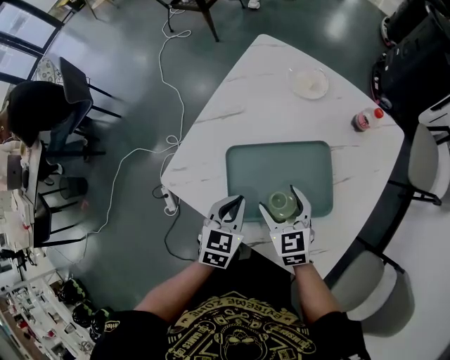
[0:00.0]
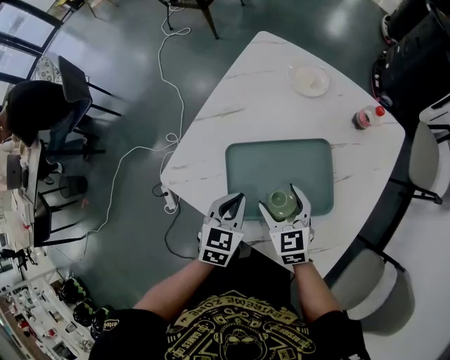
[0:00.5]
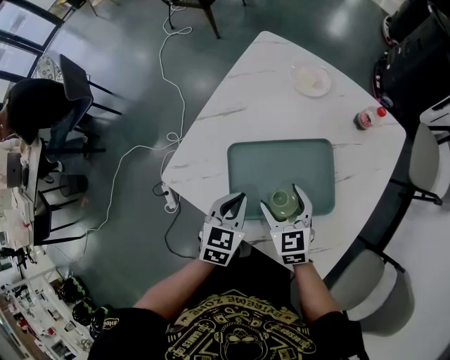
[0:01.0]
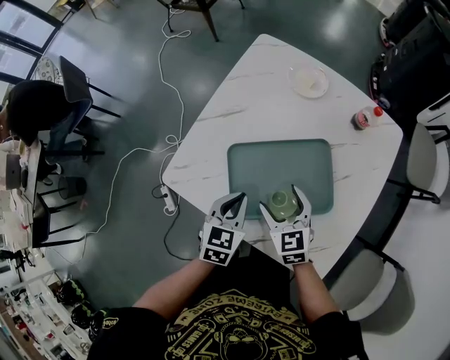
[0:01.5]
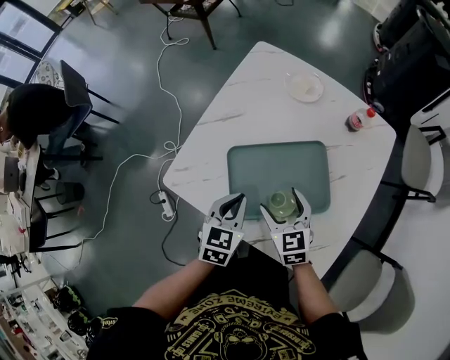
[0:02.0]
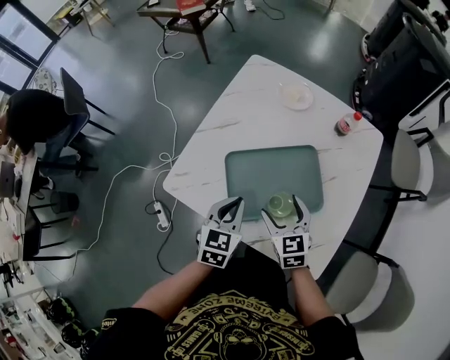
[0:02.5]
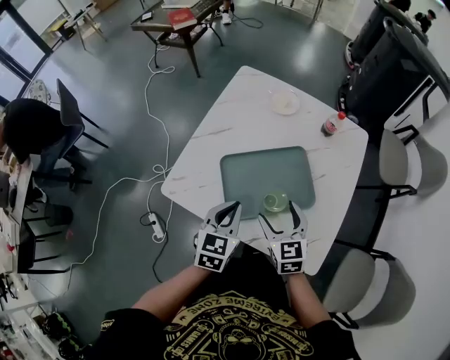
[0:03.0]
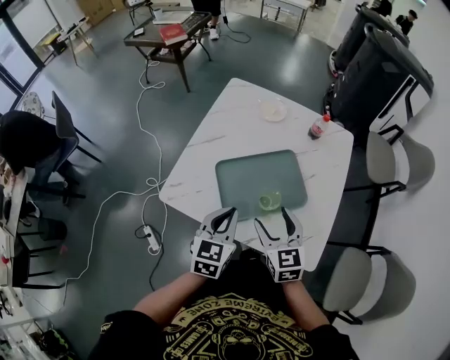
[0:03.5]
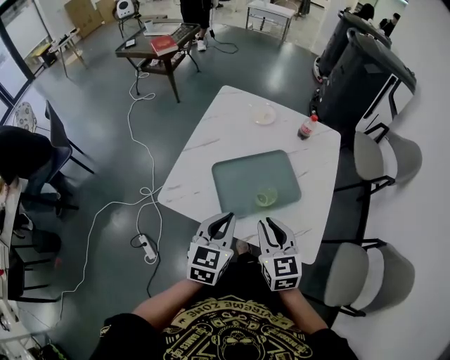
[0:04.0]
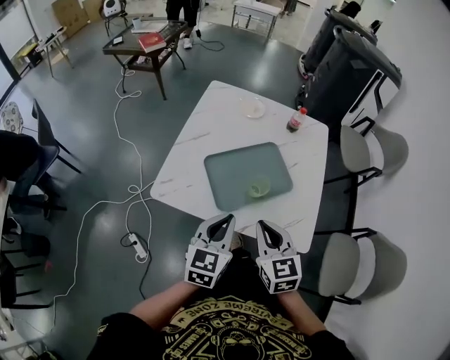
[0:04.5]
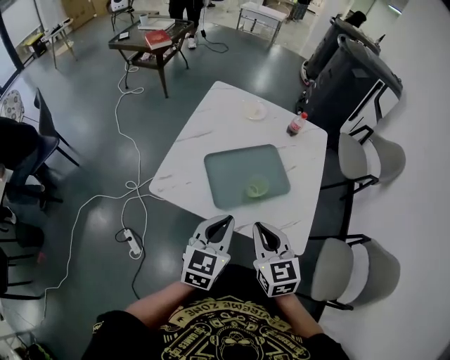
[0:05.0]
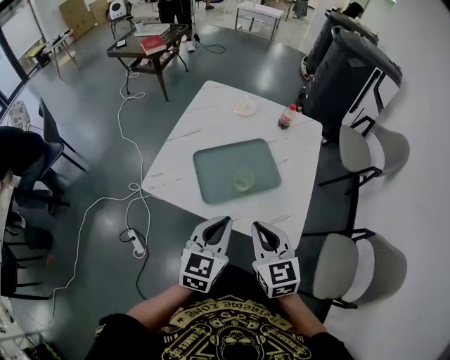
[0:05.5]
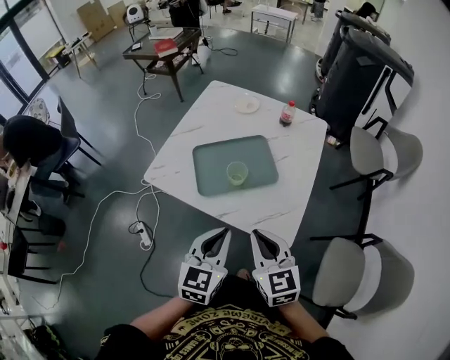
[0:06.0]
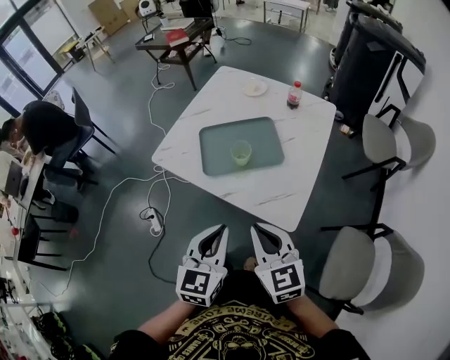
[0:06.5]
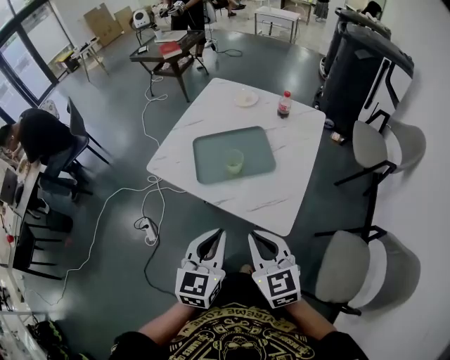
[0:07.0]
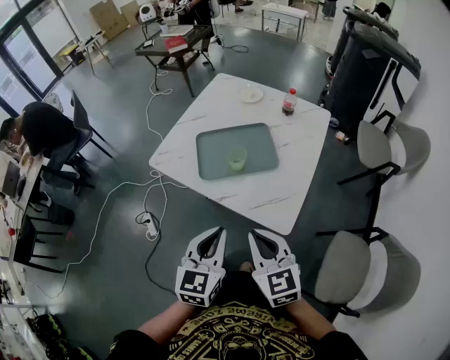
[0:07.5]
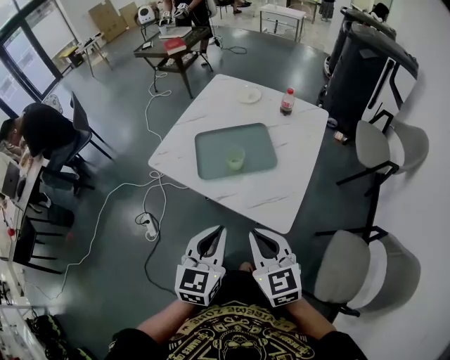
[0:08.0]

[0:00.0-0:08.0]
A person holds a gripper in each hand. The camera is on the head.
0:00.0 to 0:02.0: The grippers make only small movements.
0:02.0 to 0:04.0: Both grippers move upward and backward, some 15 cm. The right gripper closes up.
0:04.0 to 0:06.0: Both grippers move backward and to the right, some 15 cm.
0:06.0 to 0:08.0: Both grippers travel together backward, about 5 cm.

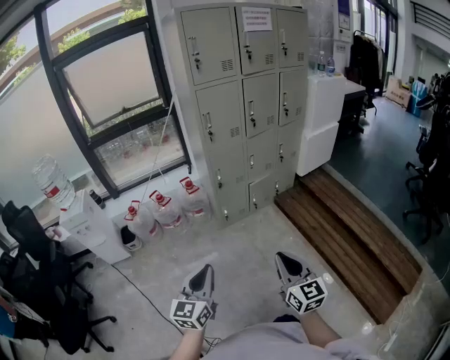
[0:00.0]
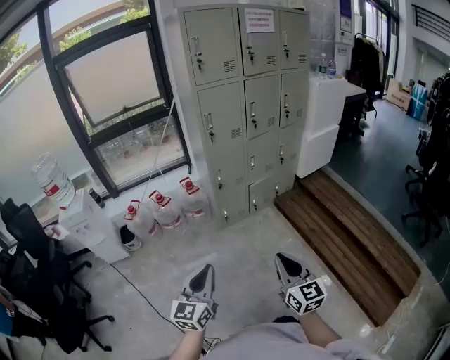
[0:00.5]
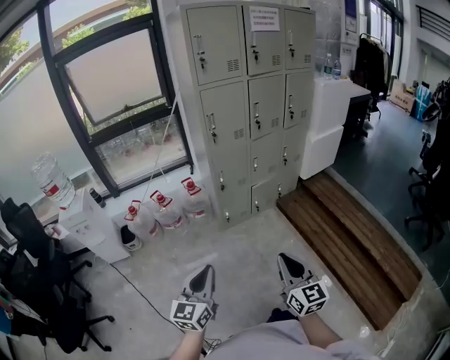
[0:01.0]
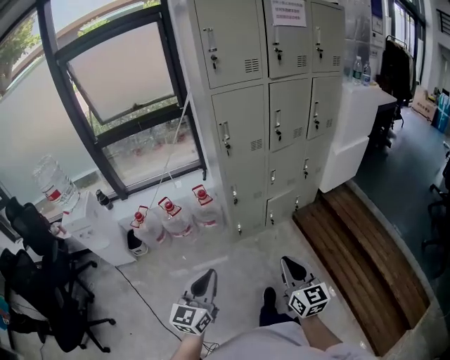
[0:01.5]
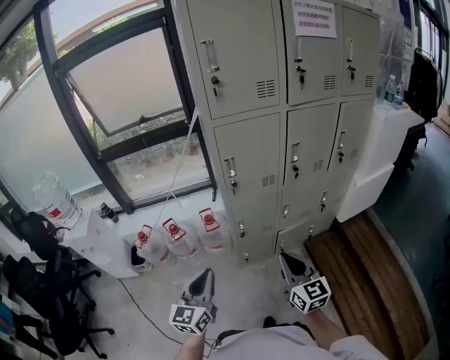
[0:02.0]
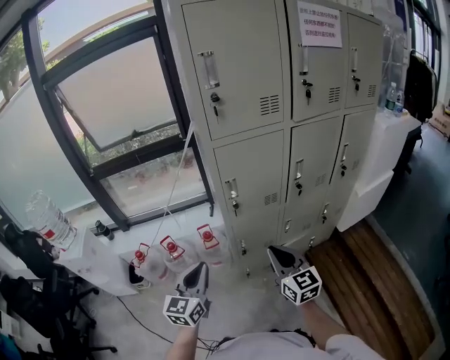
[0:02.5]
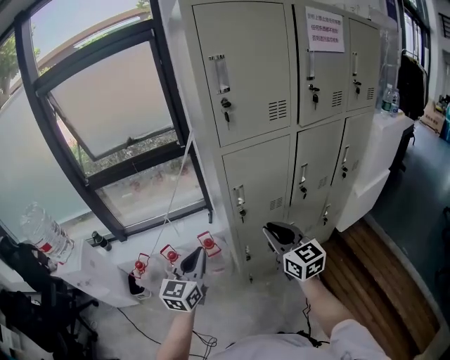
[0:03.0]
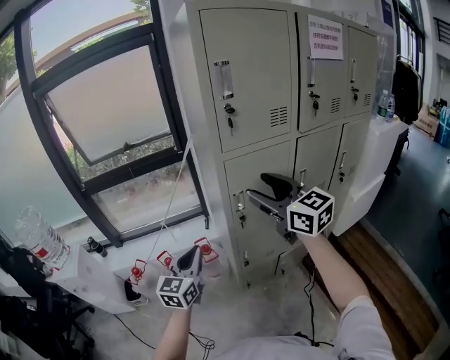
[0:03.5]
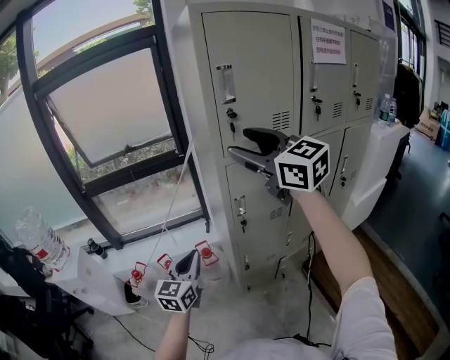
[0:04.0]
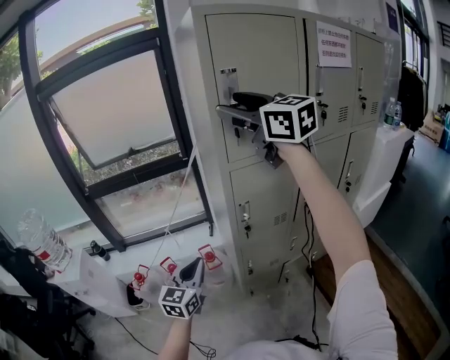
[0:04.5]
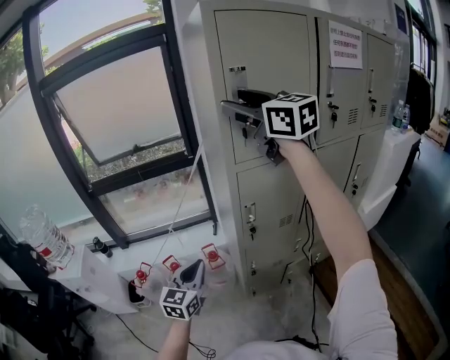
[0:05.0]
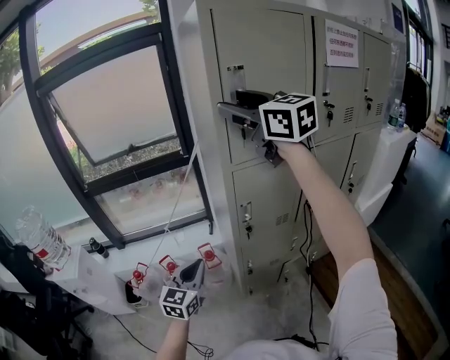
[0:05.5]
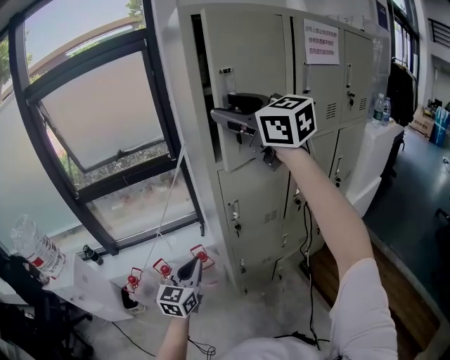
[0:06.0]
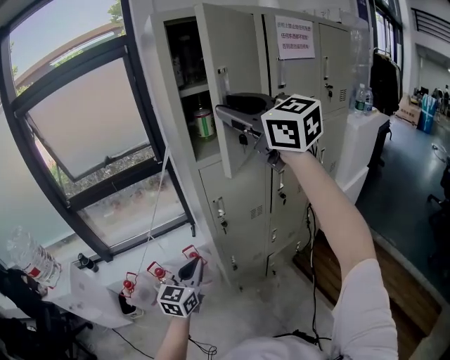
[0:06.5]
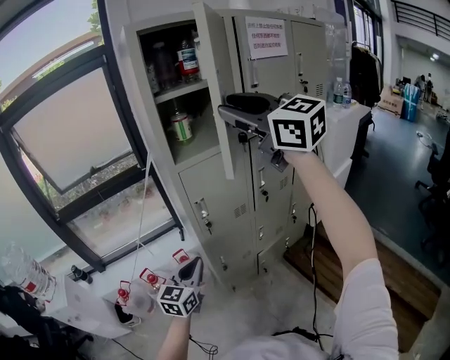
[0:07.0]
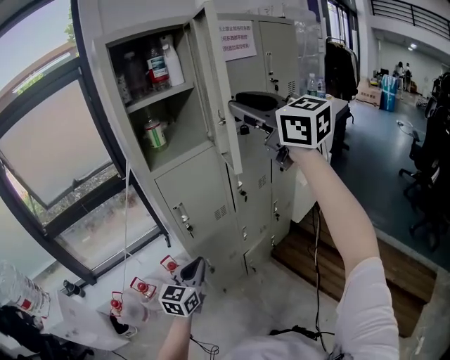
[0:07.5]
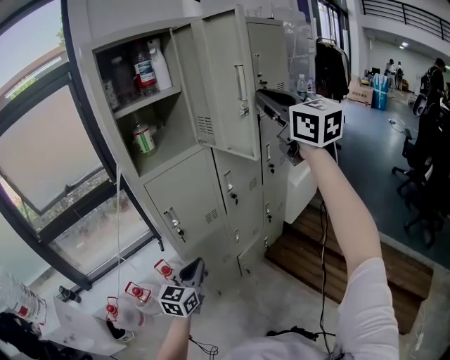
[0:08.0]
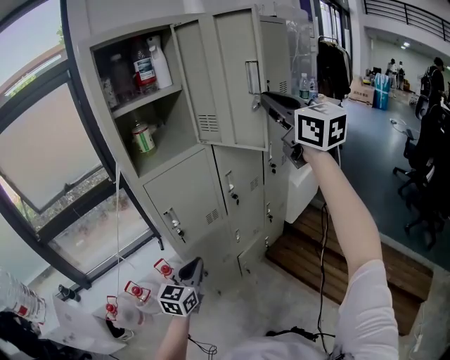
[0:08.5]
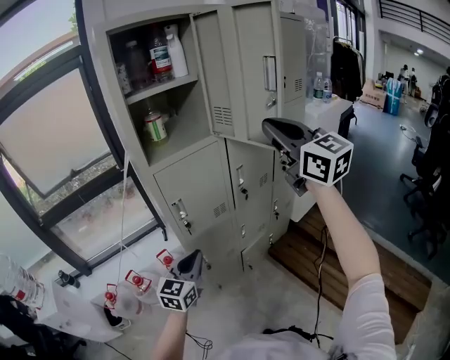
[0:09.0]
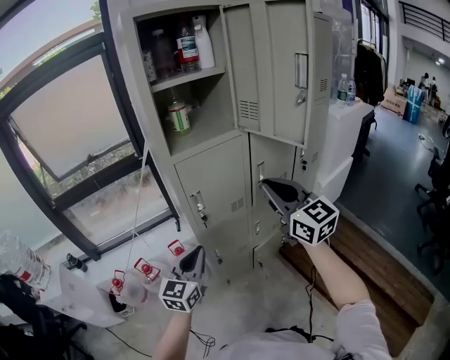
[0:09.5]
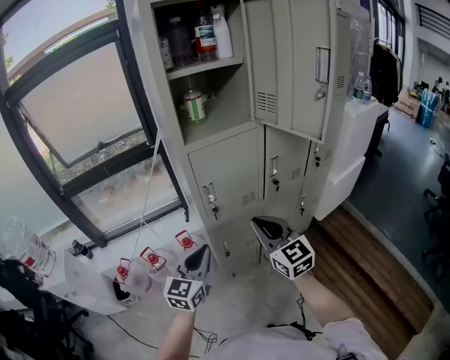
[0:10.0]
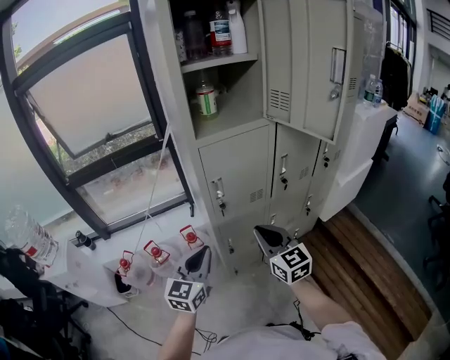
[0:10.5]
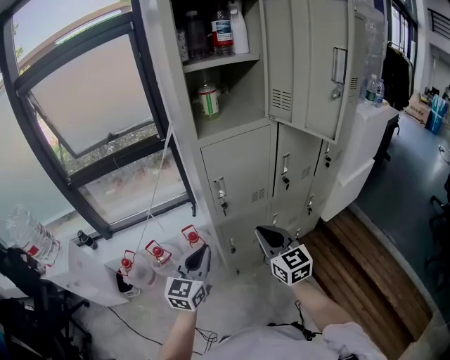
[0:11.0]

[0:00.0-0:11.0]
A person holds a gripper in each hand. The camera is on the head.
0:00.0 to 0:02.0: The two grippers travel together, forward, some 40 cm.
0:02.0 to 0:03.5: The left gripper heads forward, covering approximately 25 cm, while the right gripper is displaced upward, forward and to the left by about 35 cm, and opens.
0:03.5 to 0:05.5: The right gripper is displaced upward and forward by approximately 25 cm.
0:05.5 to 0:07.5: The left gripper goes about 15 cm to the right, and changes its angle by some 20 degrees. The right gripper moves to the right and backward, approximately 30 cm, and closes its fingers.
0:07.5 to 0:09.0: The right gripper heads downward and to the right, covering some 10 cm, and closes its fingers.
0:09.0 to 0:11.0: The left gripper goes about 10 cm to the left, while the right gripper moves downward and to the left, roughly 35 cm.

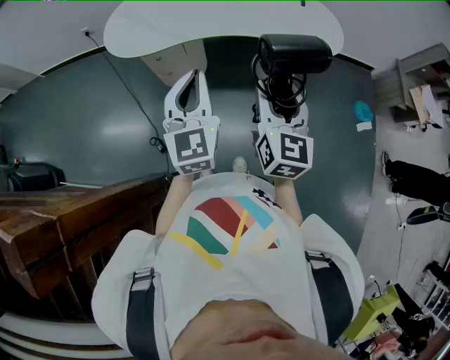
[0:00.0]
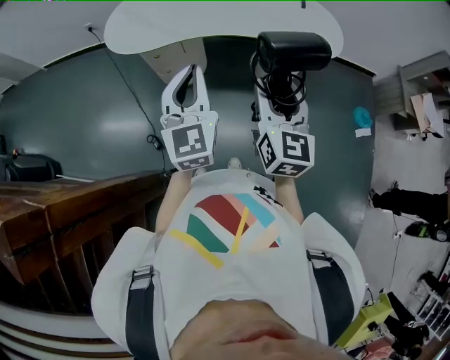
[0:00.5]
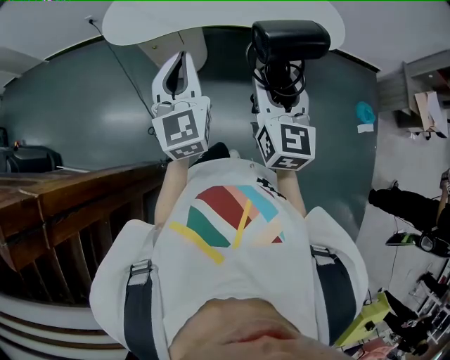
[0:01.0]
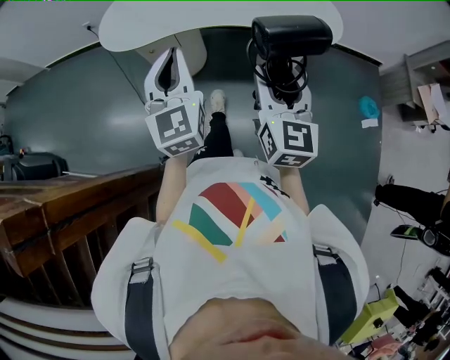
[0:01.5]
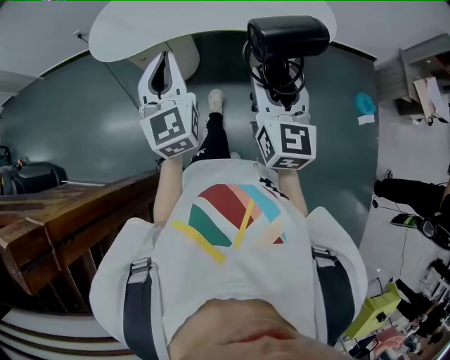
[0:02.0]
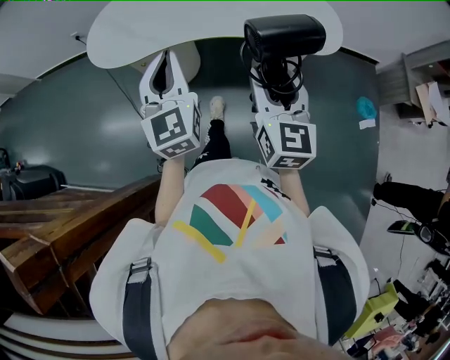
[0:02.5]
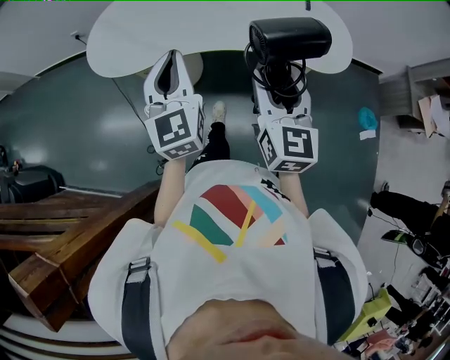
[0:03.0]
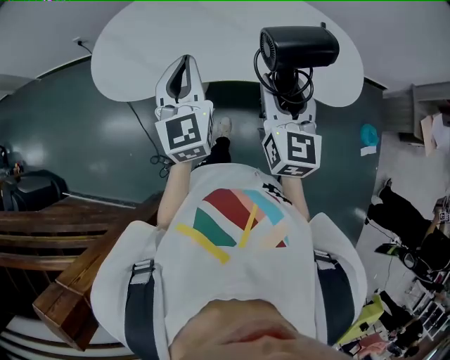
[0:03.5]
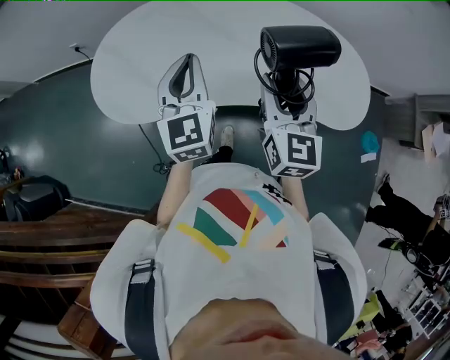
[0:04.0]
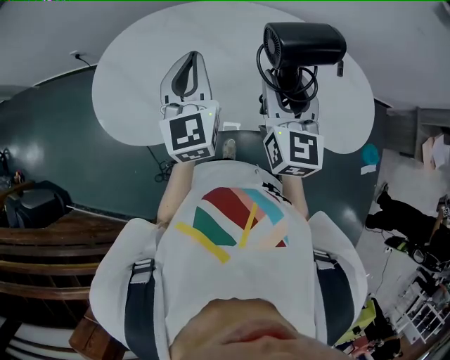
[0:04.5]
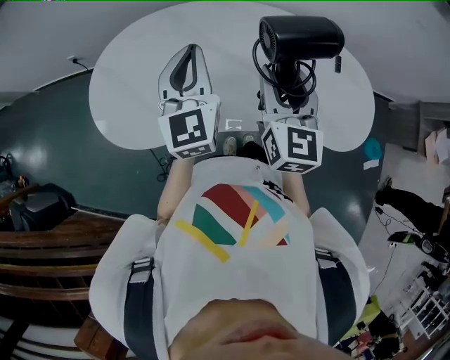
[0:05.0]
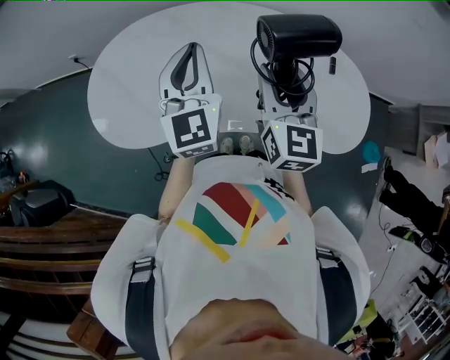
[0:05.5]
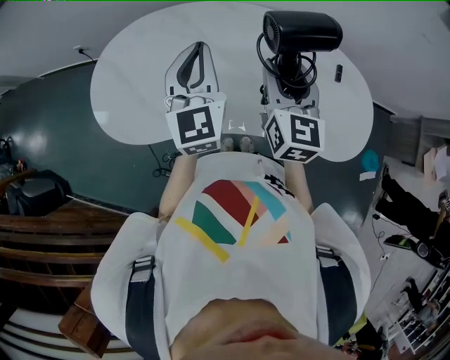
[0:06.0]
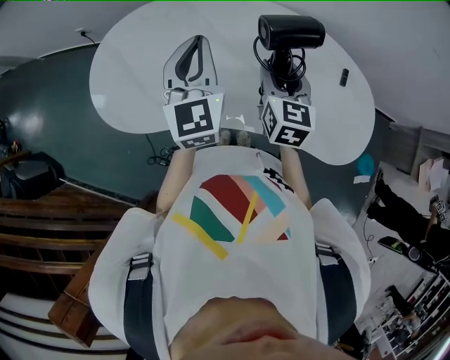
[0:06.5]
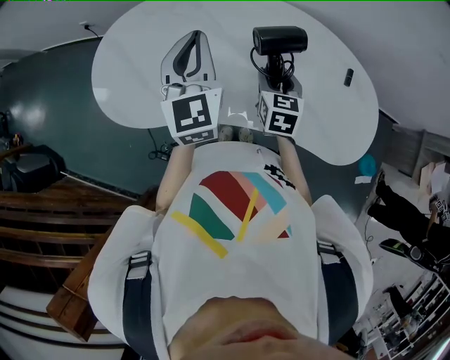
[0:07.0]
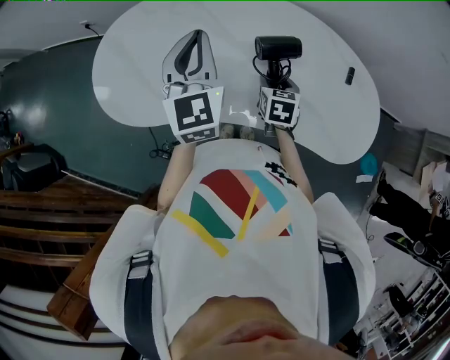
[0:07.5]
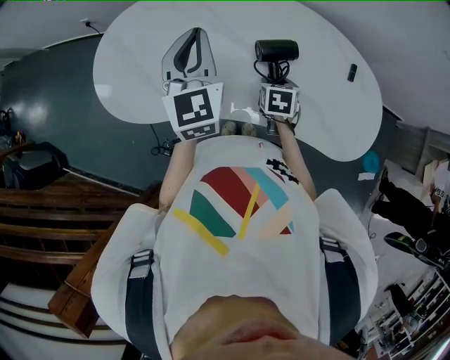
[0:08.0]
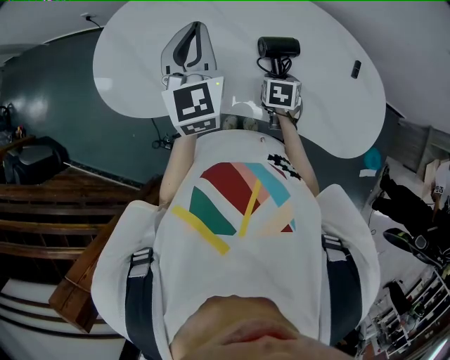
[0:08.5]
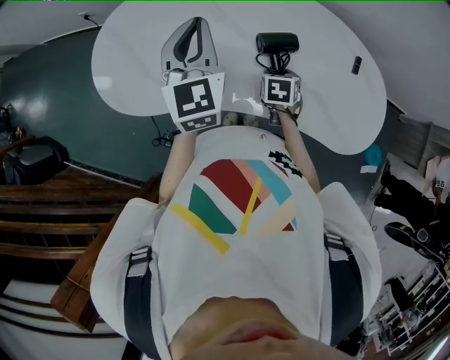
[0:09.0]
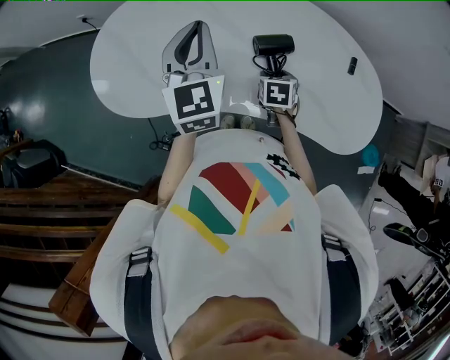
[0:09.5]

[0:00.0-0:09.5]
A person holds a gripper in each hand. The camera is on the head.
0:00.0 to 0:02.0: The left gripper goes some 5 cm forward; the right gripper is displaced to the right by some 10 cm.
0:02.0 to 0:04.0: The two grippers go approximately 35 cm forward.
0:04.0 to 0:05.5: The right gripper is displaced forward by approximately 10 cm, while the left gripper shifts approximately 10 cm forward and to the right.
0:05.5 to 0:07.5: The right gripper goes about 25 cm downward, and points its fingers some 40 degrees further downward.
0:07.5 to 0:09.5: The right gripper travels downward by some 5 cm.
